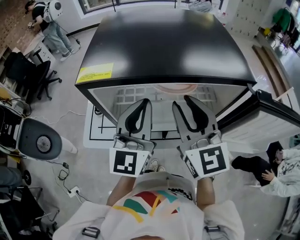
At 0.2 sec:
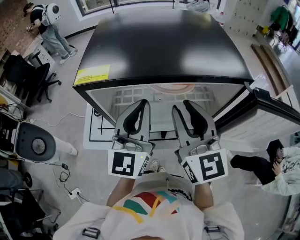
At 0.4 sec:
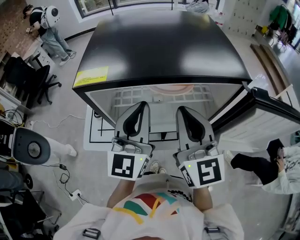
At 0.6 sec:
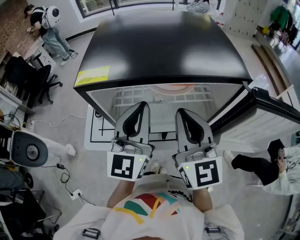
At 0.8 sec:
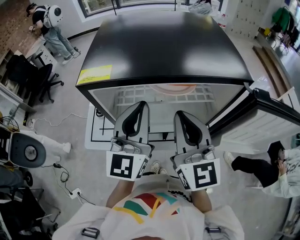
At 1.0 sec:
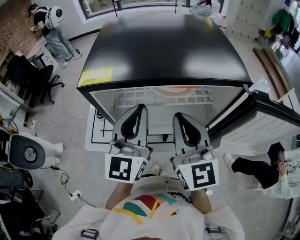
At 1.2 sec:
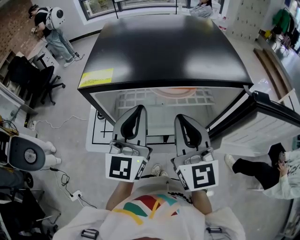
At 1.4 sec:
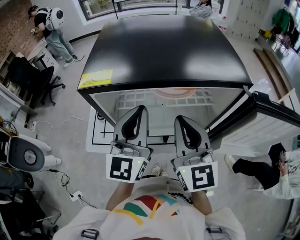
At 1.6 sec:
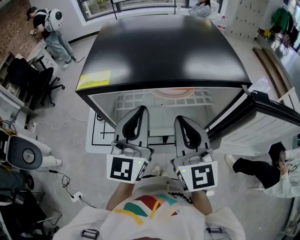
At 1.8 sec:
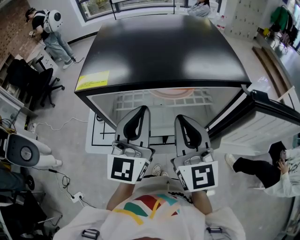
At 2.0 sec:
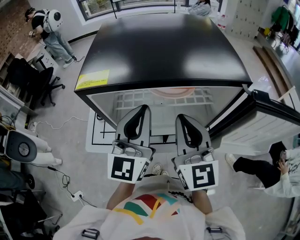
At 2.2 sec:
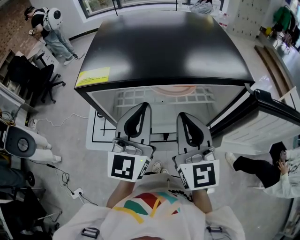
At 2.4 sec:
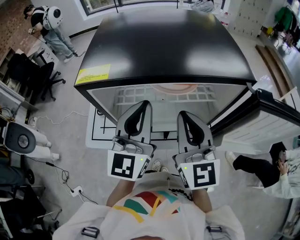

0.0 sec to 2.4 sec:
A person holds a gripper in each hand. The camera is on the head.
0.0 sec to 1.2 sec: The right gripper closes.
1.2 sec to 2.4 sec: The grippers make only small movements.

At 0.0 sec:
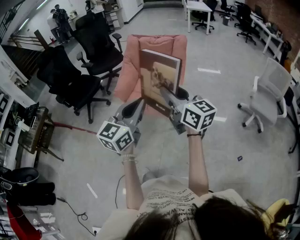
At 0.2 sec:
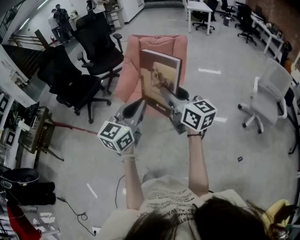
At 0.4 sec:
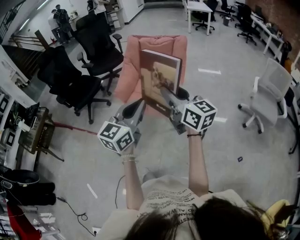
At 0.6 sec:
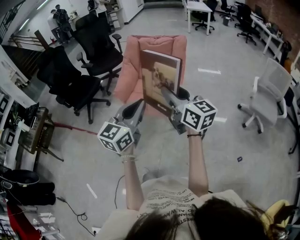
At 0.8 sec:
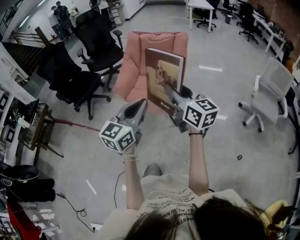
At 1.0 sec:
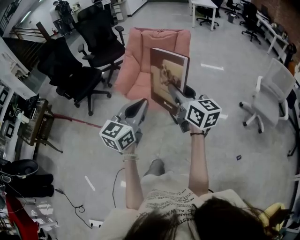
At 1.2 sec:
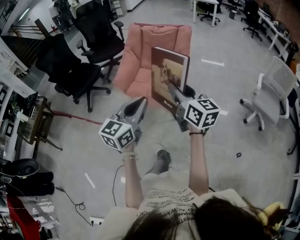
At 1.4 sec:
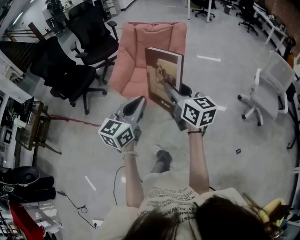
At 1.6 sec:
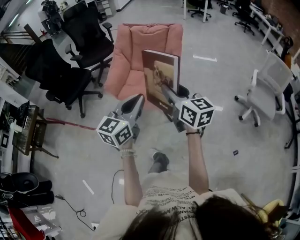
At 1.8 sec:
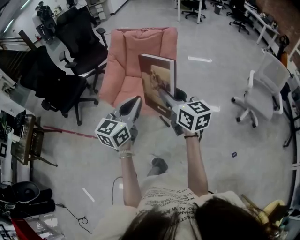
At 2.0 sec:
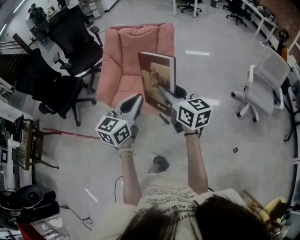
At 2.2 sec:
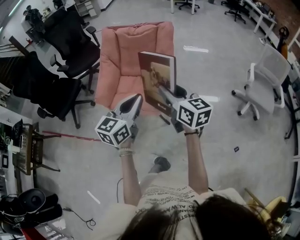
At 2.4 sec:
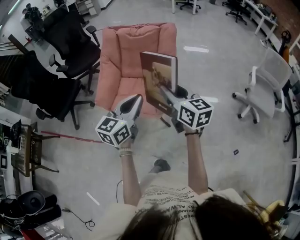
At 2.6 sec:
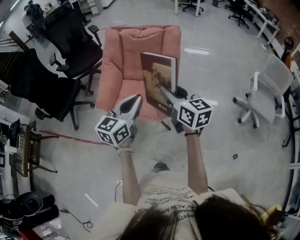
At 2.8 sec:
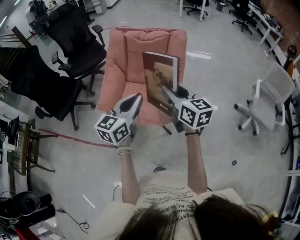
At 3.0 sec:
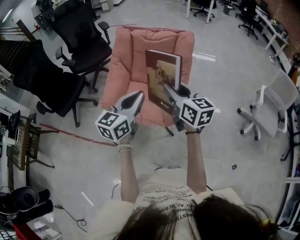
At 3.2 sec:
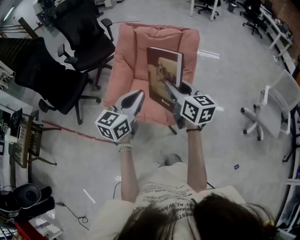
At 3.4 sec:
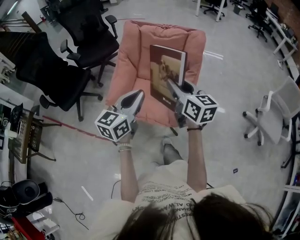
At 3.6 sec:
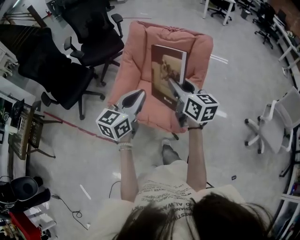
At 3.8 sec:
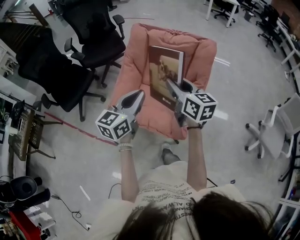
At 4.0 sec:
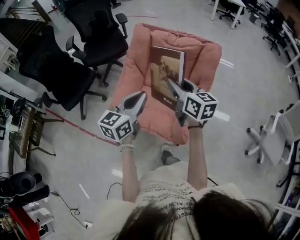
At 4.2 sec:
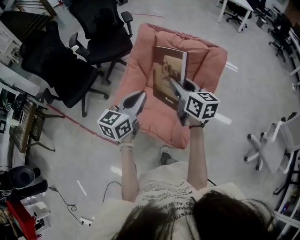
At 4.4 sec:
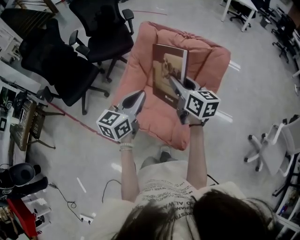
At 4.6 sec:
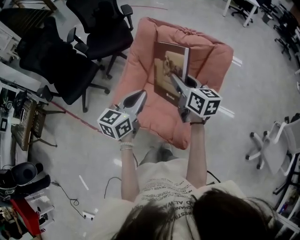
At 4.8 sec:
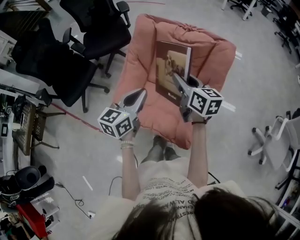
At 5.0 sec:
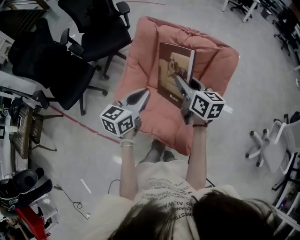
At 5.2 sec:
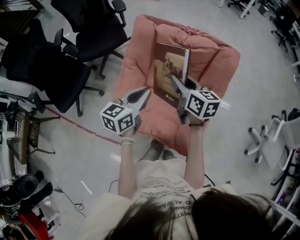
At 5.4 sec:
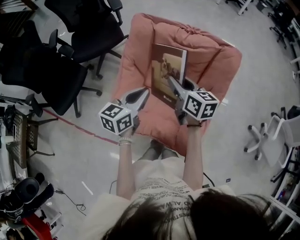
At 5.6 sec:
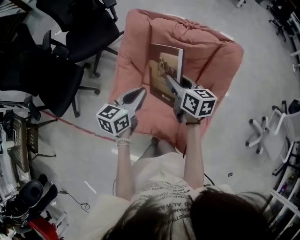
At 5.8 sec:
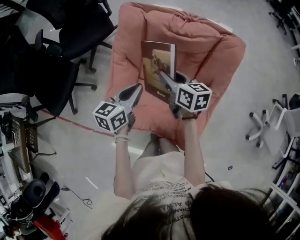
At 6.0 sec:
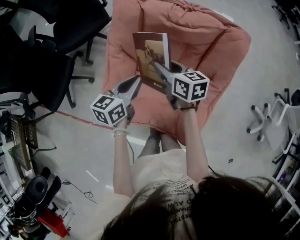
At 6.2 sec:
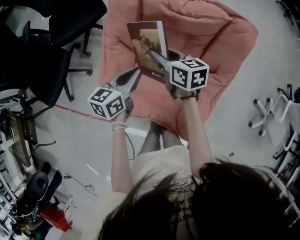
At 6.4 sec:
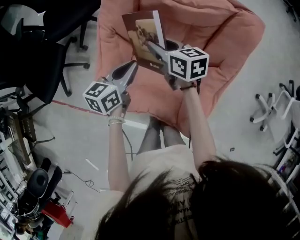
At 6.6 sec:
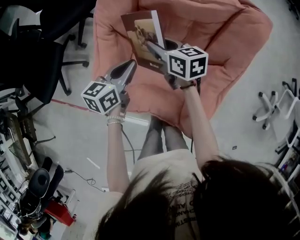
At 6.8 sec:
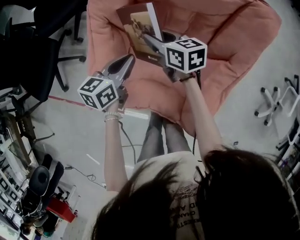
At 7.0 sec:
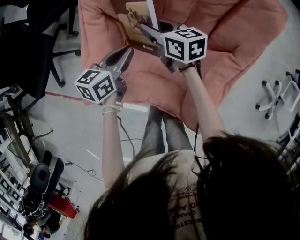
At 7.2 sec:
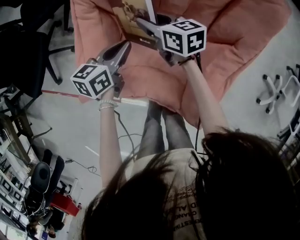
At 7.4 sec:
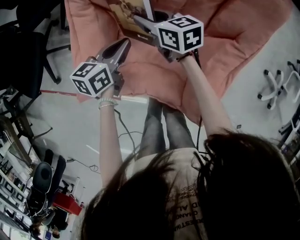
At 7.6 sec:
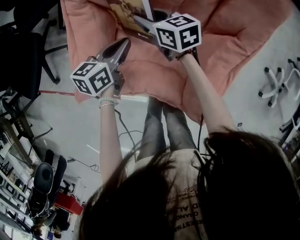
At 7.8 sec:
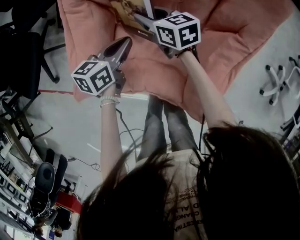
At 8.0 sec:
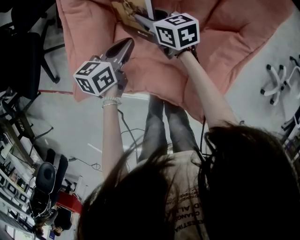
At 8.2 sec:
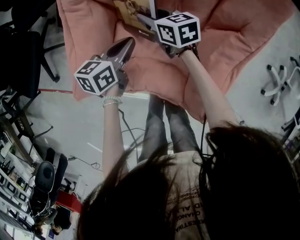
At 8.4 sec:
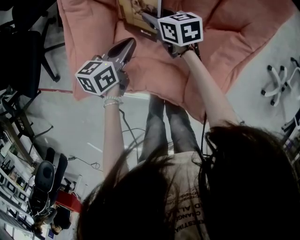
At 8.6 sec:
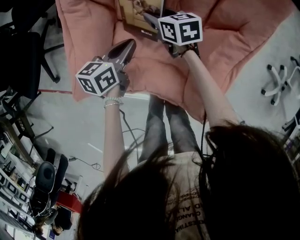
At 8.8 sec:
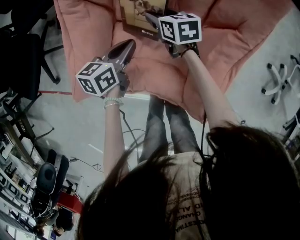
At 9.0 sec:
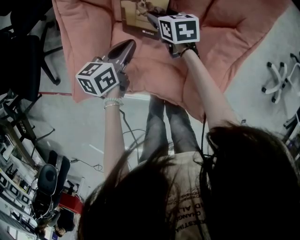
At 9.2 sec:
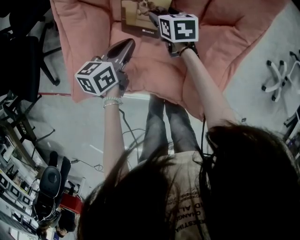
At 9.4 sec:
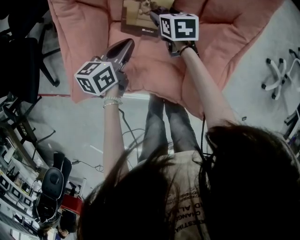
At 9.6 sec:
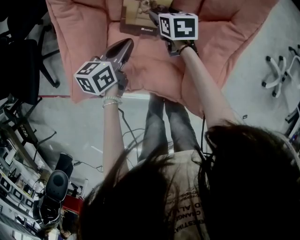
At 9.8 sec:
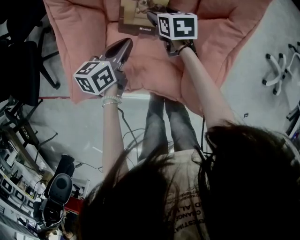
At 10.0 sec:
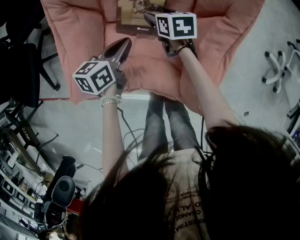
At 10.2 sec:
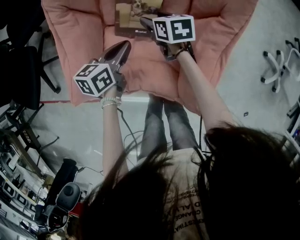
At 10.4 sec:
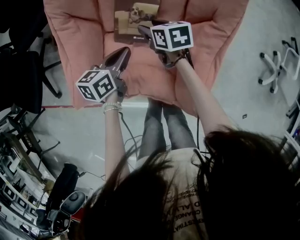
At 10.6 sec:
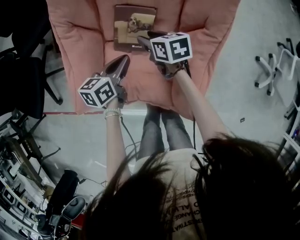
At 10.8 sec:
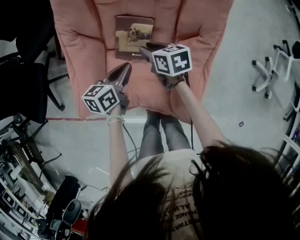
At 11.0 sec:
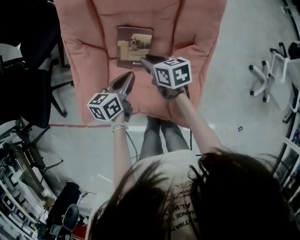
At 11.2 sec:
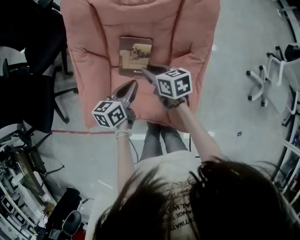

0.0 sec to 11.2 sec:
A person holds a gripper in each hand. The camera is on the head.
0.0 sec to 1.6 sec: The grippers both shift forward and downward by some 10 cm.
1.6 sec to 3.2 sec: The two grippers go approximately 25 cm forward.
3.2 sec to 4.8 sec: The two grippers go about 25 cm forward.
4.8 sec to 6.4 sec: The left gripper heads downward and forward, covering some 25 cm. Meanwhile the right gripper is displaced downward, forward and to the left by roughly 25 cm.
6.4 sec to 8.0 sec: Both grippers move downward, approximately 15 cm.
8.0 sec to 9.6 sec: The right gripper goes roughly 10 cm to the right and downward, turns by approximately 30 degrees, and opens up.
9.6 sec to 11.2 sec: The right gripper travels upward and backward by some 20 cm, and closes. Meanwhile the left gripper shifts some 15 cm upward and to the right.

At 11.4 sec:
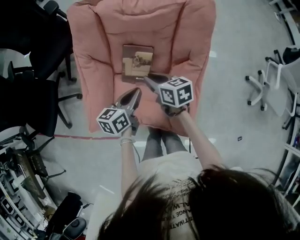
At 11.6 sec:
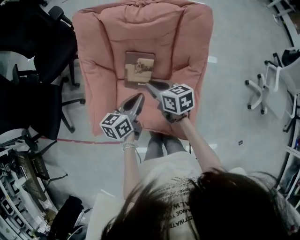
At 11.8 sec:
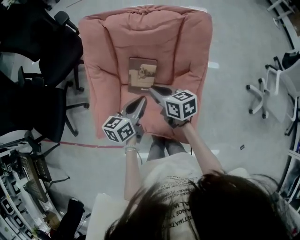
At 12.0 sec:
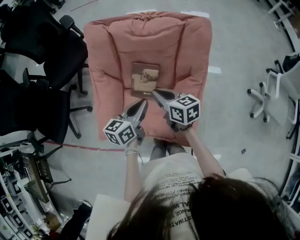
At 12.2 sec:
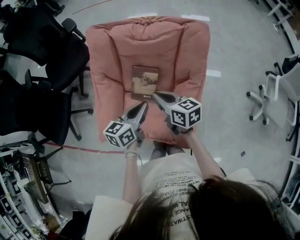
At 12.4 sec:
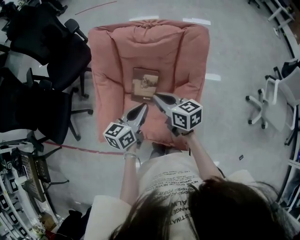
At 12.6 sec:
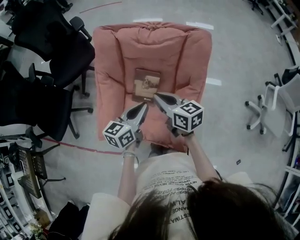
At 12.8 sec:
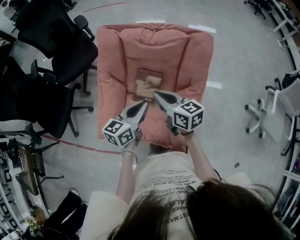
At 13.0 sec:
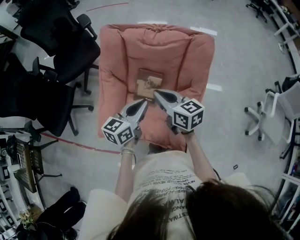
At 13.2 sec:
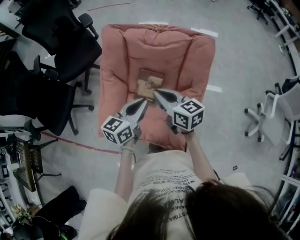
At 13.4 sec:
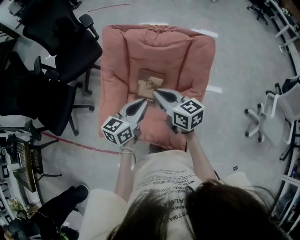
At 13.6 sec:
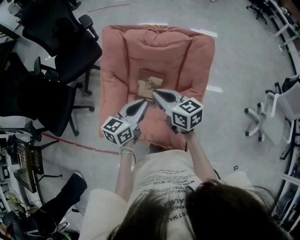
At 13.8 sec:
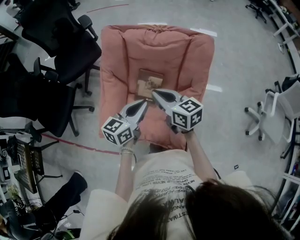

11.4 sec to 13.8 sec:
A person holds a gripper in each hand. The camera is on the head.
11.4 sec to 12.6 sec: Both grippers move upward, approximately 15 cm.
12.6 sec to 13.8 sec: The grippers move only a little.

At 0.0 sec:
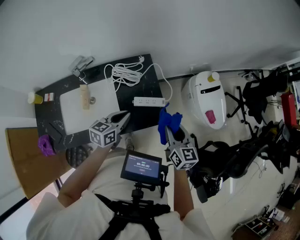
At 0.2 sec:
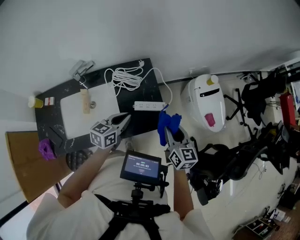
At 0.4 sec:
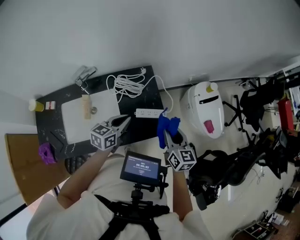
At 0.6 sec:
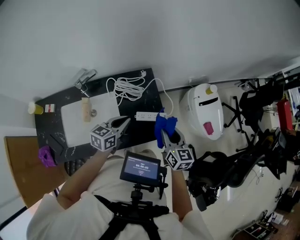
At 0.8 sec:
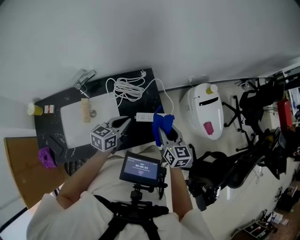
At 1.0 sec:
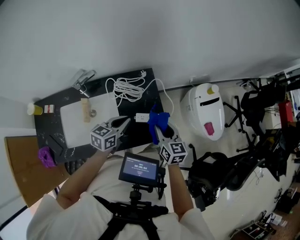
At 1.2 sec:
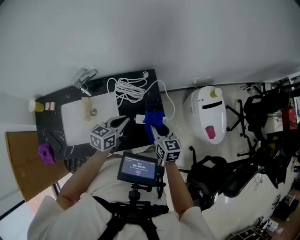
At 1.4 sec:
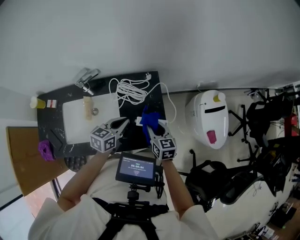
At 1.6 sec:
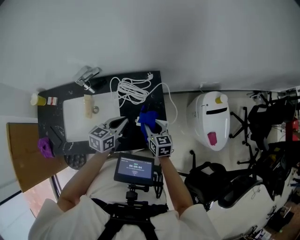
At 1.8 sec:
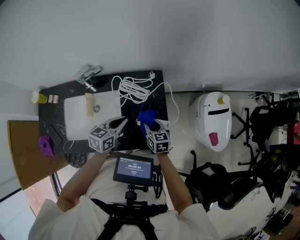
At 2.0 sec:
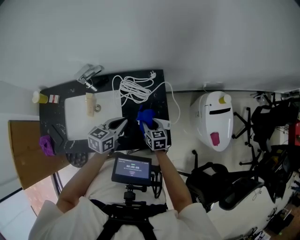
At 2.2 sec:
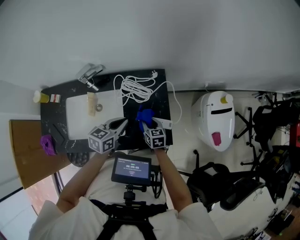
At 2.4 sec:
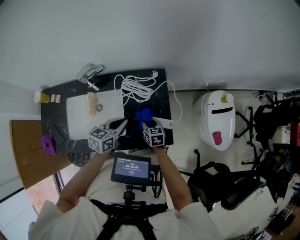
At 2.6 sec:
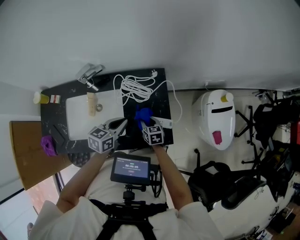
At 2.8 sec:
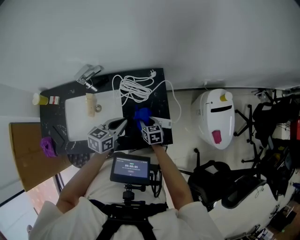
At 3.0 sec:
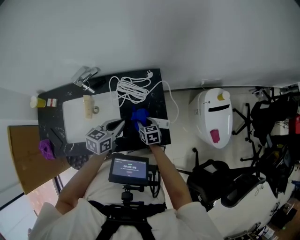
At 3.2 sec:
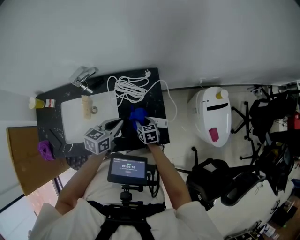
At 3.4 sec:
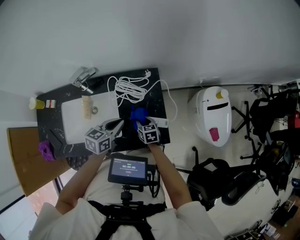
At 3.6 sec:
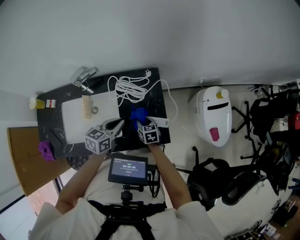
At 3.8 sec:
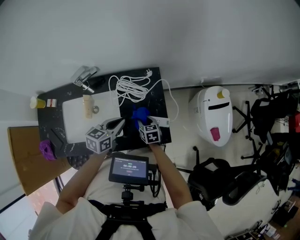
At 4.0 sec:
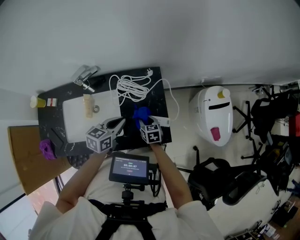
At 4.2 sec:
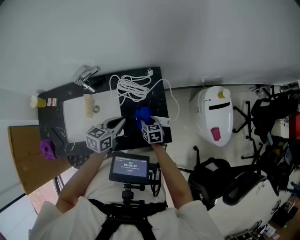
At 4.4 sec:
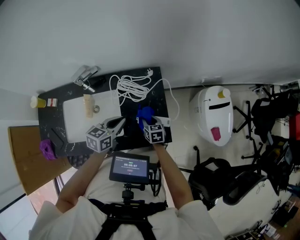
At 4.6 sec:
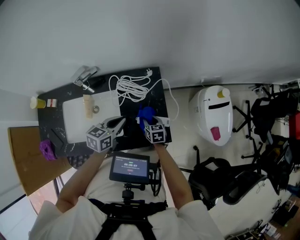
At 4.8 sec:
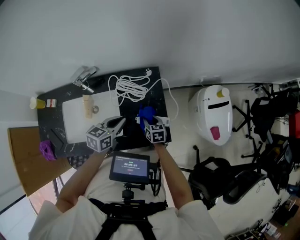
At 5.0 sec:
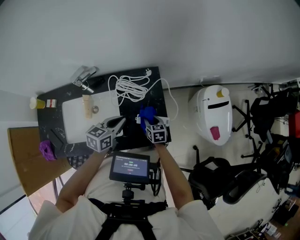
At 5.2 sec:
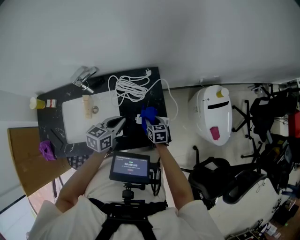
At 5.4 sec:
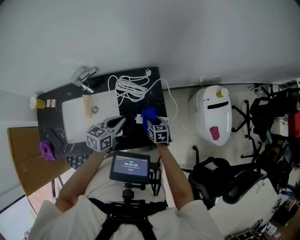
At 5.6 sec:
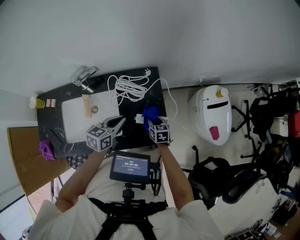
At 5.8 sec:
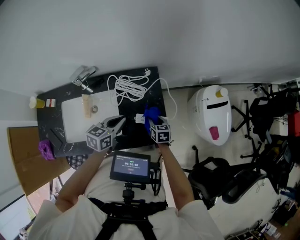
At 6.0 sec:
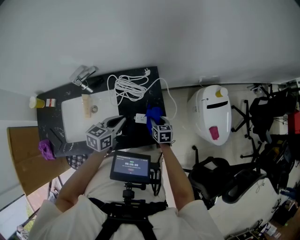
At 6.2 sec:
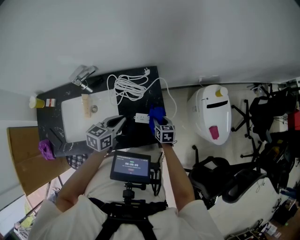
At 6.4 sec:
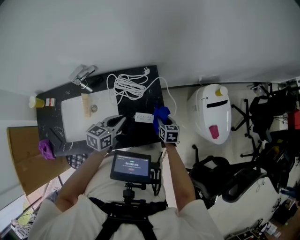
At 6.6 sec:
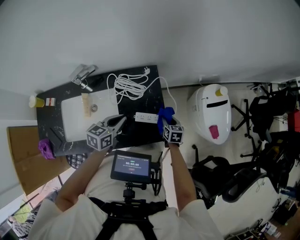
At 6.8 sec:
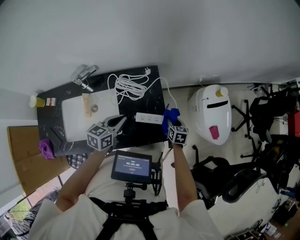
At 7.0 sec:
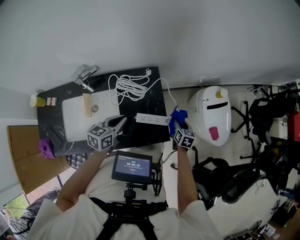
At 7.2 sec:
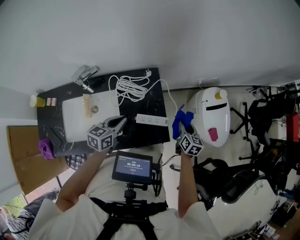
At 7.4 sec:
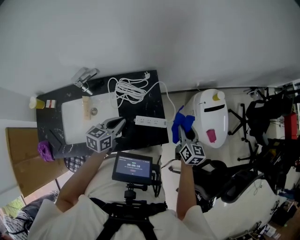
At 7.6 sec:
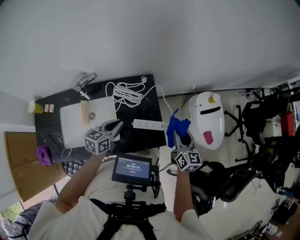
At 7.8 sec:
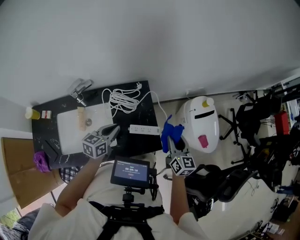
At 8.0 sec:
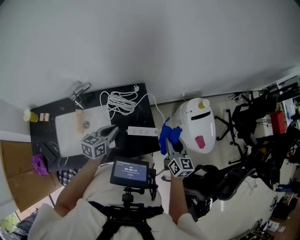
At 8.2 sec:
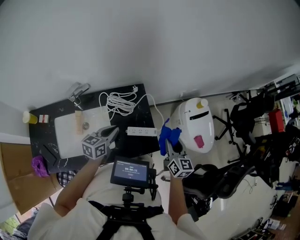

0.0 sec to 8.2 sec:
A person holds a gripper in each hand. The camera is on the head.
0.0 sec to 1.6 sec: The right gripper travels forward, to the left and downward by roughly 25 cm, and turns by roughly 20 degrees, while the left gripper is displaced forward and to the left by roughly 10 cm.
1.6 sec to 3.2 sec: The right gripper shifts some 10 cm downward.
3.2 sec to 5.0 sec: The grippers make only small movements.
5.0 sec to 6.6 sec: The right gripper travels to the right by roughly 10 cm.
6.6 sec to 8.2 sec: The left gripper changes place by about 5 cm; the right gripper shifts some 25 cm upward, and tips its fingers upward by approximately 30 degrees.
